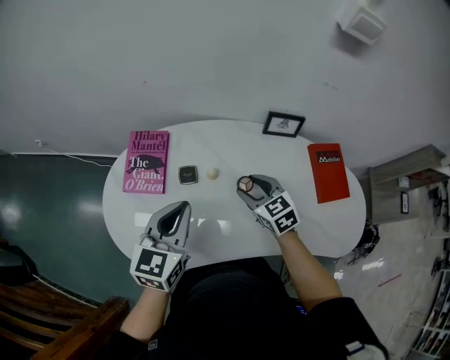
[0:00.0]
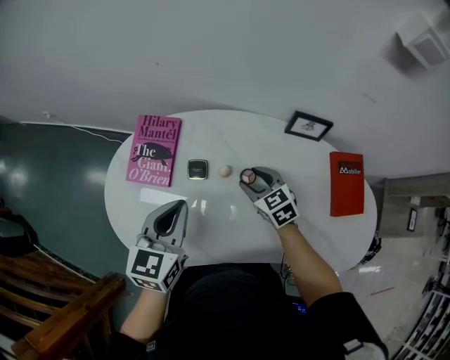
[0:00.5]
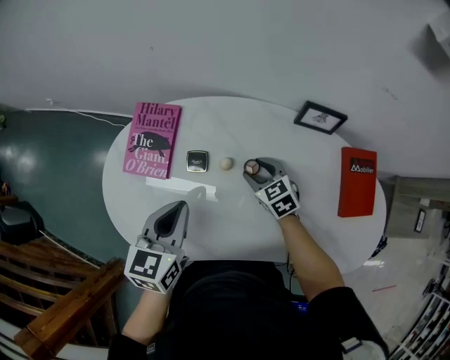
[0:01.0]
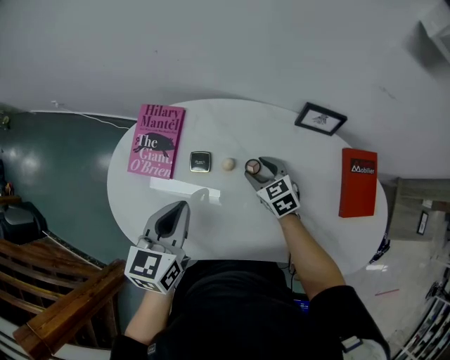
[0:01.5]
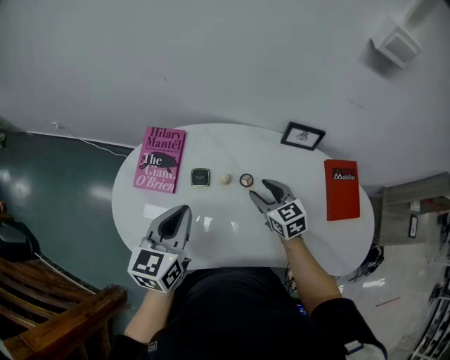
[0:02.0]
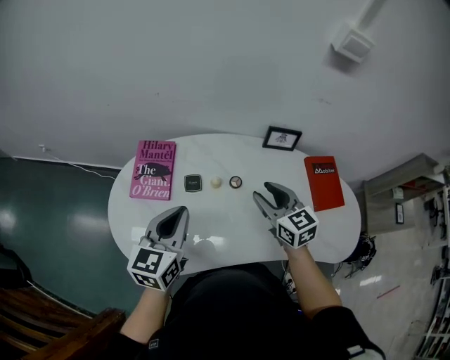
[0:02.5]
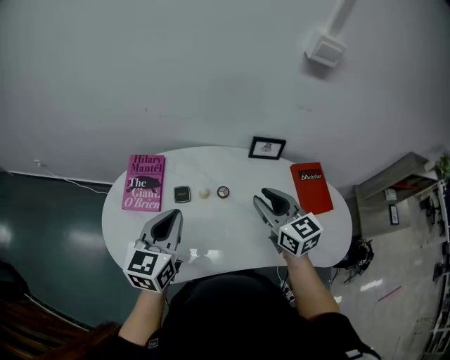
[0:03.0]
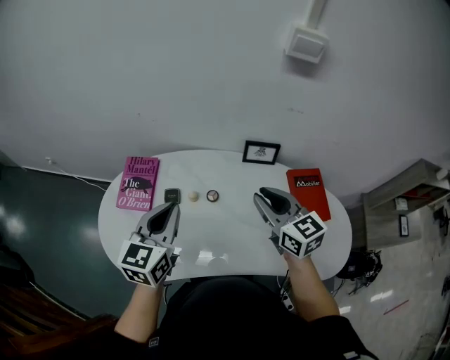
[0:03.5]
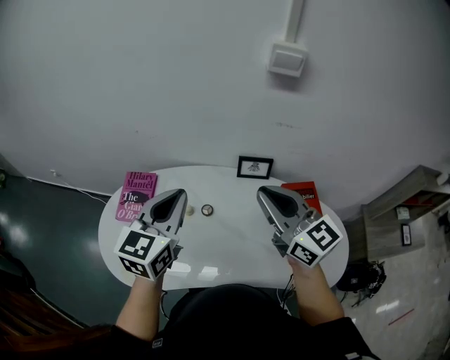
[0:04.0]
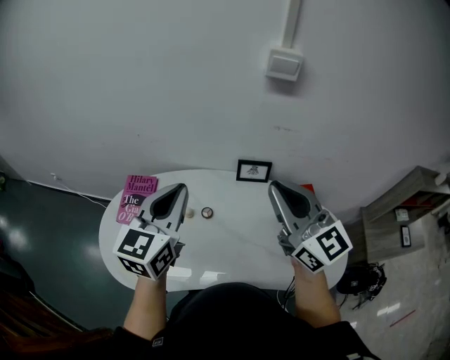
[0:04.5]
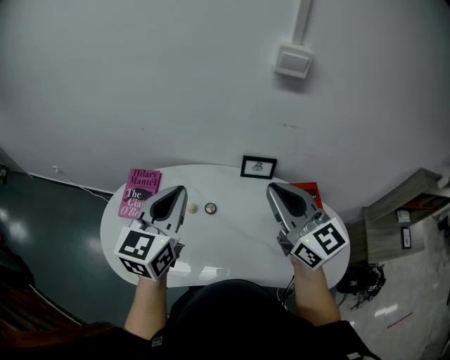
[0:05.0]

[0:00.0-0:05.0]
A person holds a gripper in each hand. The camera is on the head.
0:00.0 to 0:02.5: The right gripper is displaced upward by about 10 cm; the left gripper reaches about 5 cm downward, then returns.
0:02.5 to 0:05.0: The two grippers go about 20 cm upward and to the right. The right gripper swivels approximately 30 degrees, and closes its fingers.

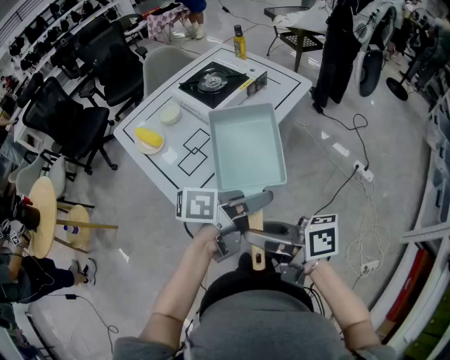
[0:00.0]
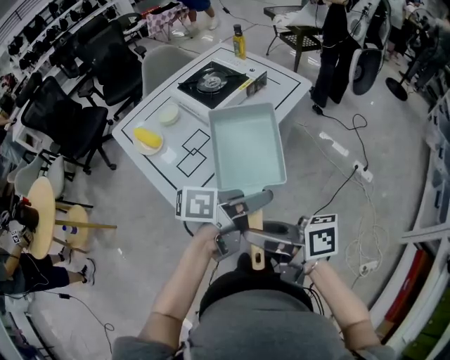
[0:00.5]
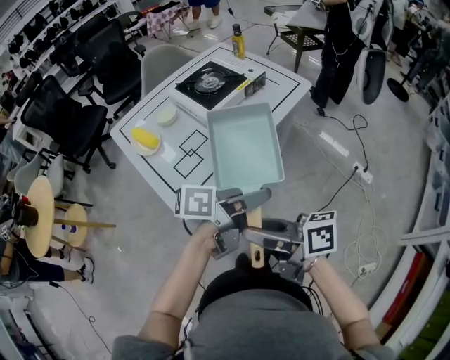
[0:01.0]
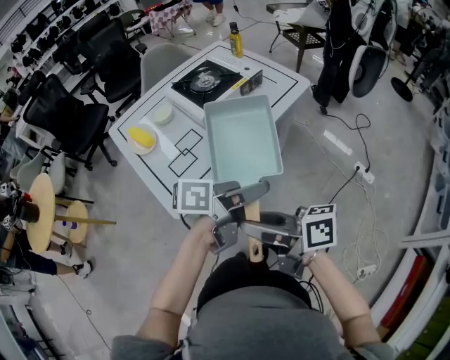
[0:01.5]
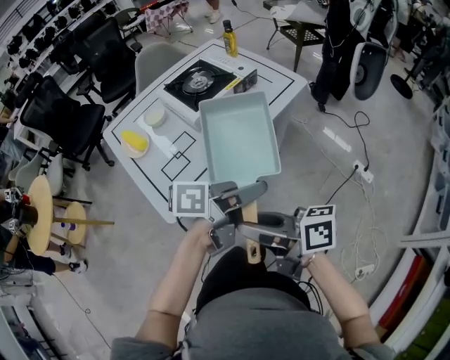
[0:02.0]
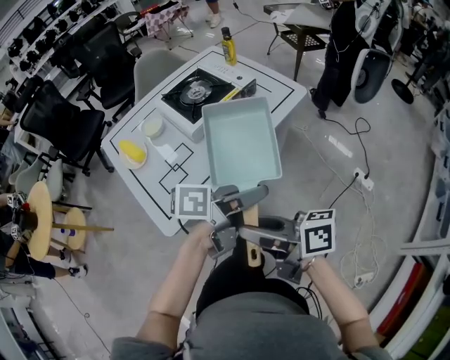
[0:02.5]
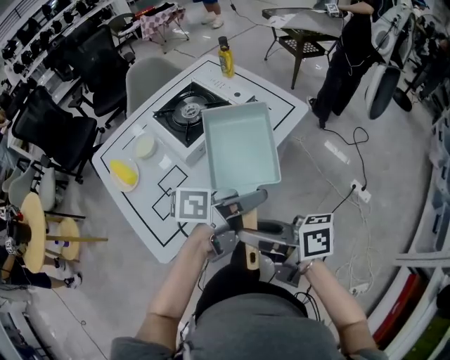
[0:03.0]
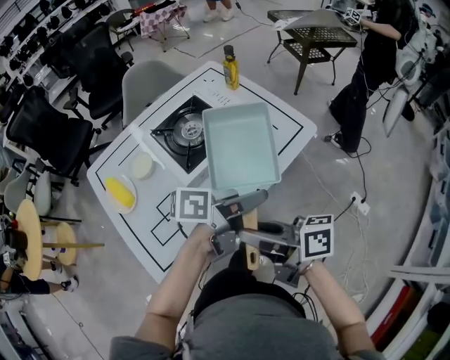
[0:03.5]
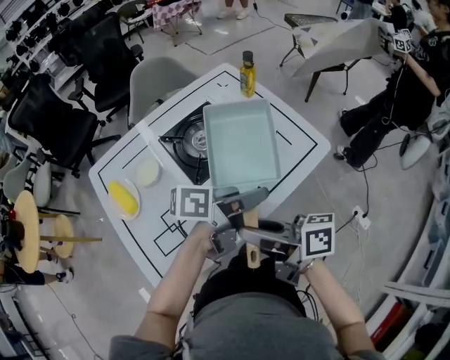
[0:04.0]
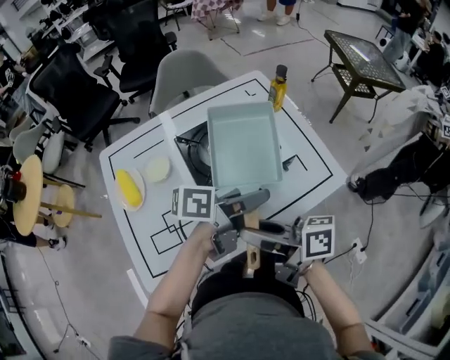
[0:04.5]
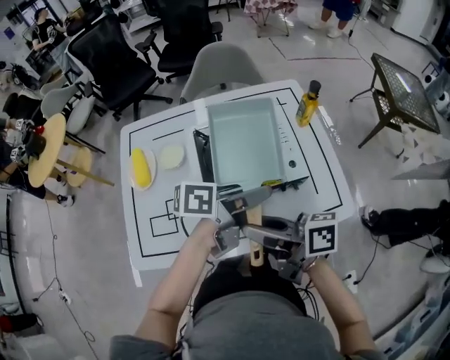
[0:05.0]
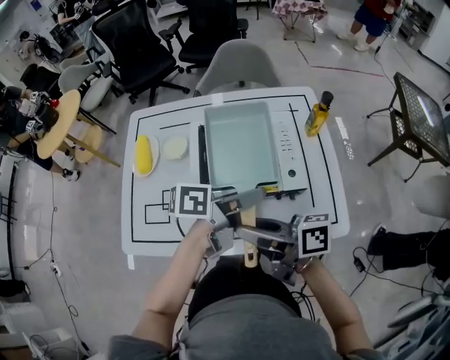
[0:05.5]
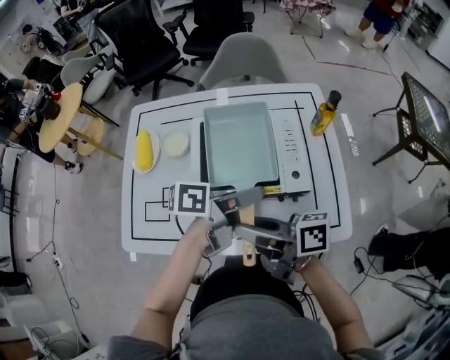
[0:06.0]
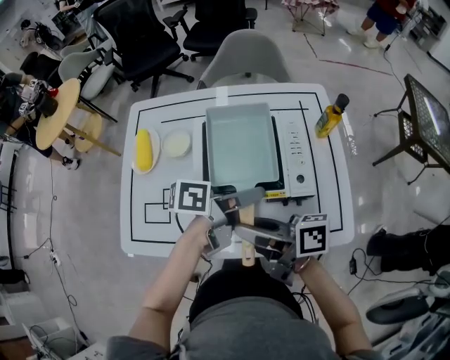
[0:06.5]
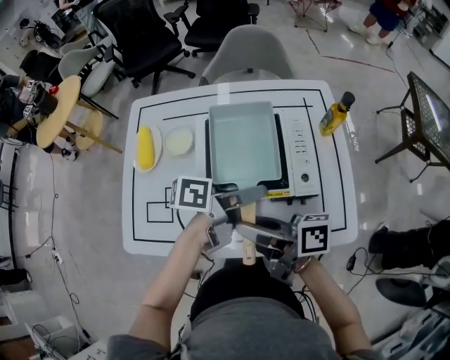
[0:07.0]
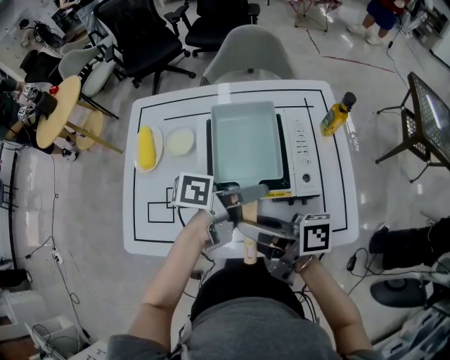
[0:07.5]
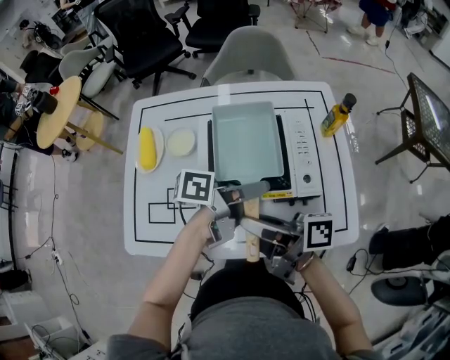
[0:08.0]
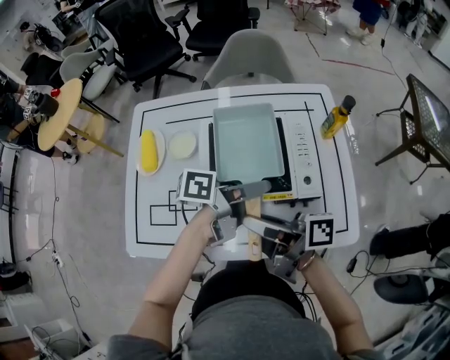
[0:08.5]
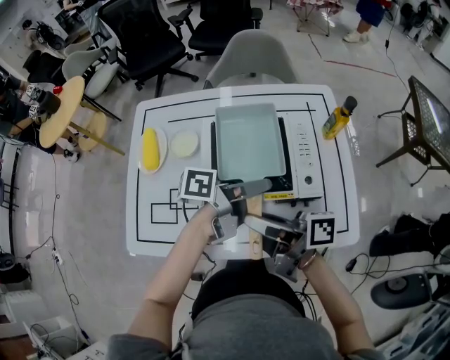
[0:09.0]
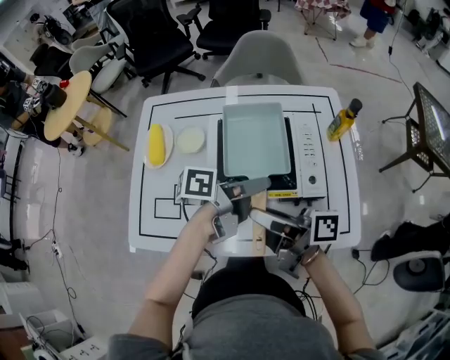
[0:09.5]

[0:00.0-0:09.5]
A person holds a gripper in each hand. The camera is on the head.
0:00.0 to 0:02.0: The right gripper moves about 5 cm. The left gripper moves about 5 cm.
0:02.0 to 0:04.0: The right gripper ends up some 25 cm from where it was; the left gripper moves roughly 25 cm.
0:04.0 to 0:05.5: The right gripper changes place by about 10 cm, and rotates about 40 degrees; the left gripper ends up approximately 10 cm from where it was, and turns by some 40 degrees.
0:05.5 to 0:07.5: The grippers make only small movements.
0:07.5 to 0:09.5: The grippers move only a little.

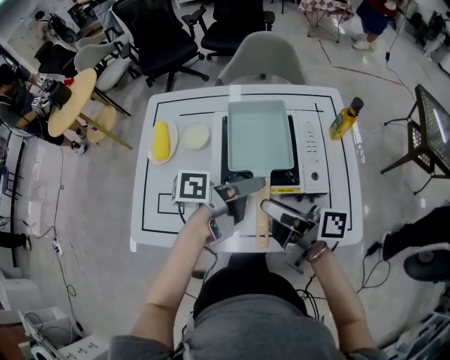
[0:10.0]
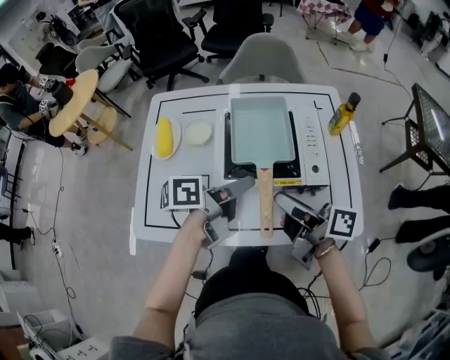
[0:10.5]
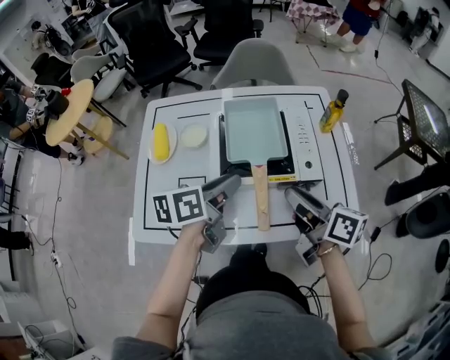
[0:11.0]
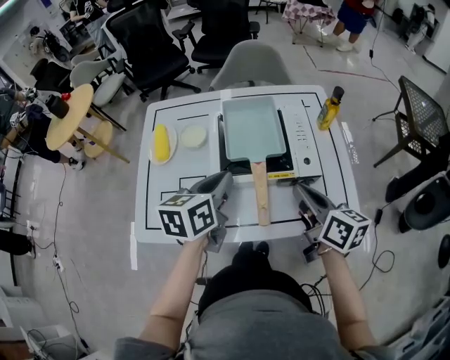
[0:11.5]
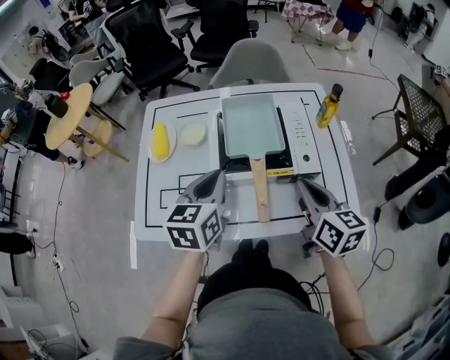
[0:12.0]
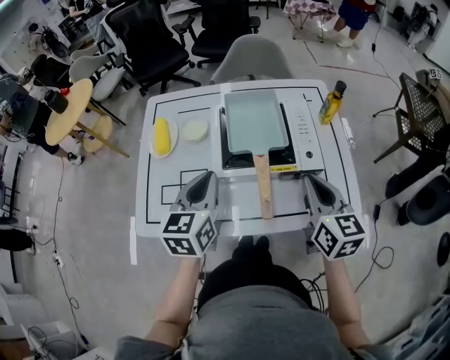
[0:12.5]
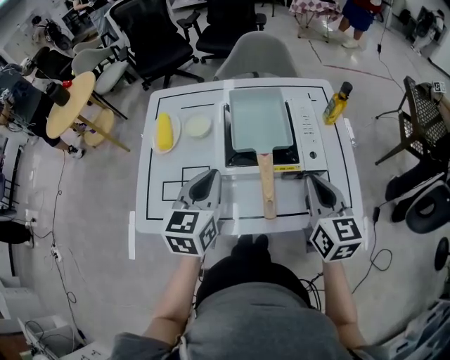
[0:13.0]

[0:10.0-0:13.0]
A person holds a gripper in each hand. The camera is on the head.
0:10.0 to 0:11.5: The left gripper heads to the left, covering approximately 5 cm, rolls clockwise, seen from behind, by some 40 degrees, and closes up. The right gripper travels to the right by roughly 10 cm, swivels some 50 degrees, and closes its fingers.
0:11.5 to 0:13.0: The left gripper turns by about 20 degrees, while the right gripper turns by approximately 30 degrees.

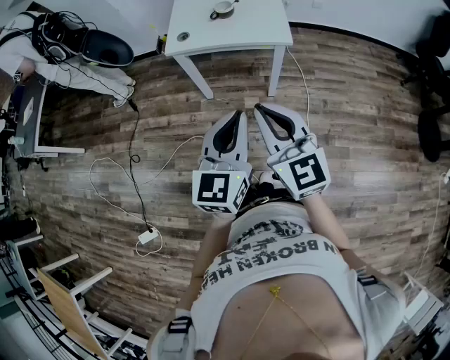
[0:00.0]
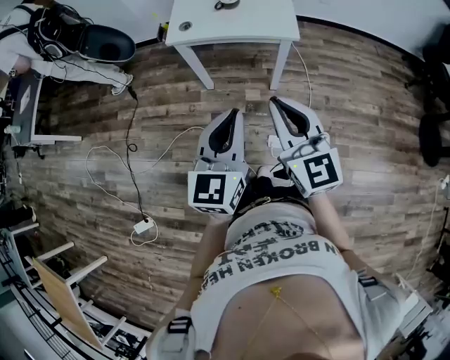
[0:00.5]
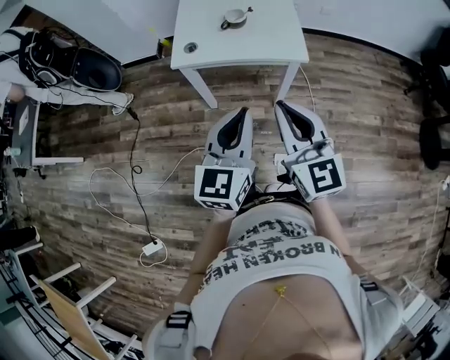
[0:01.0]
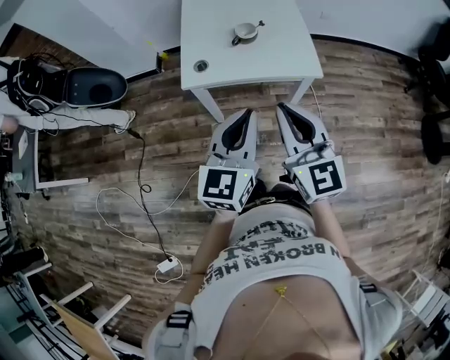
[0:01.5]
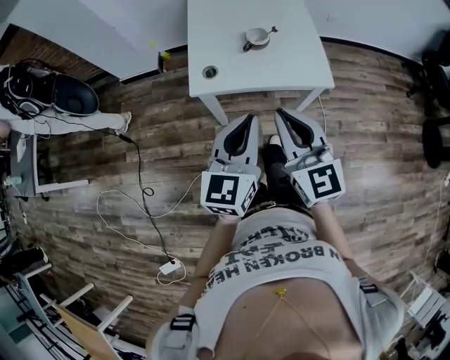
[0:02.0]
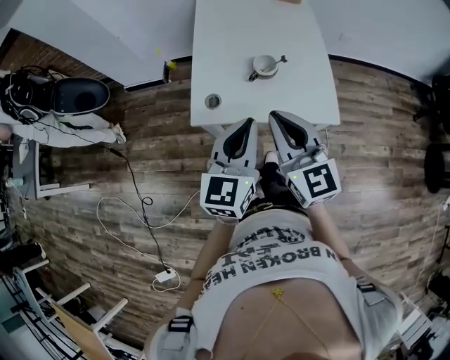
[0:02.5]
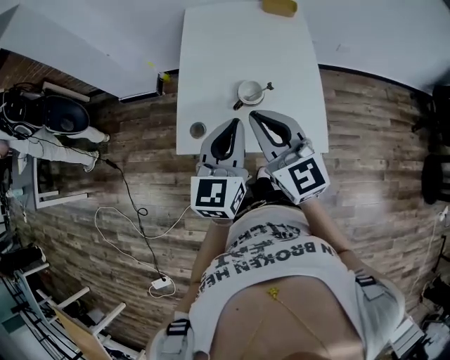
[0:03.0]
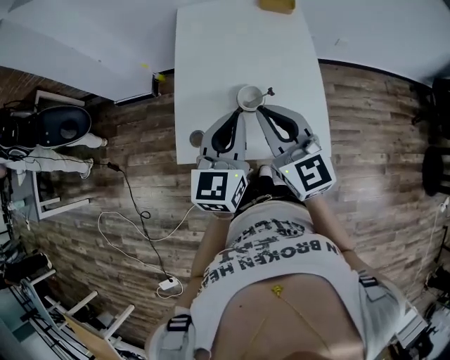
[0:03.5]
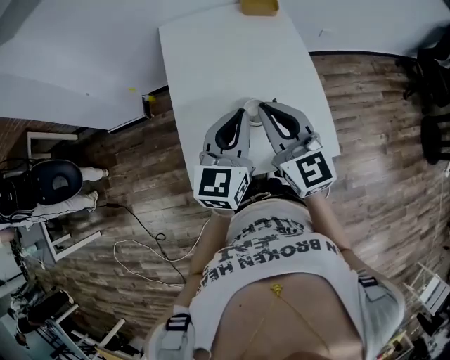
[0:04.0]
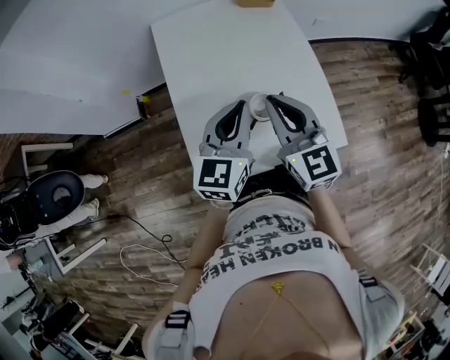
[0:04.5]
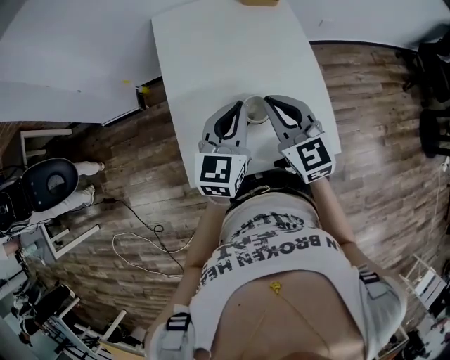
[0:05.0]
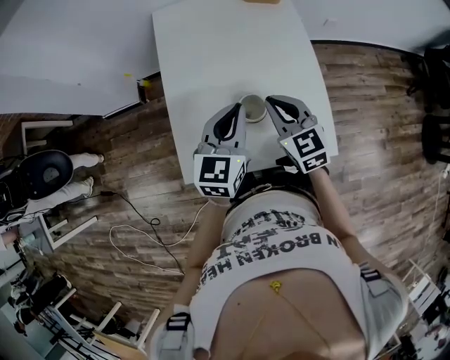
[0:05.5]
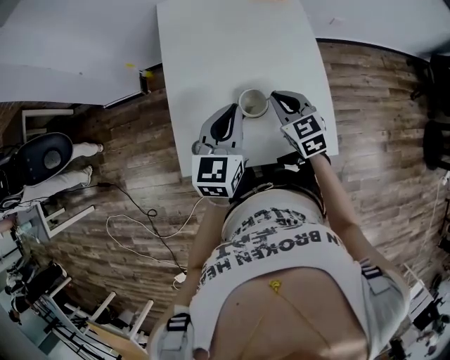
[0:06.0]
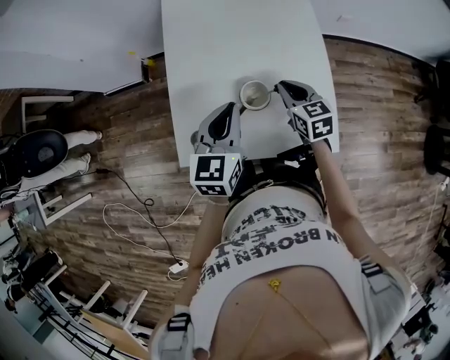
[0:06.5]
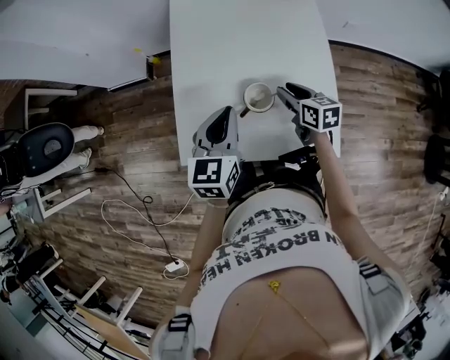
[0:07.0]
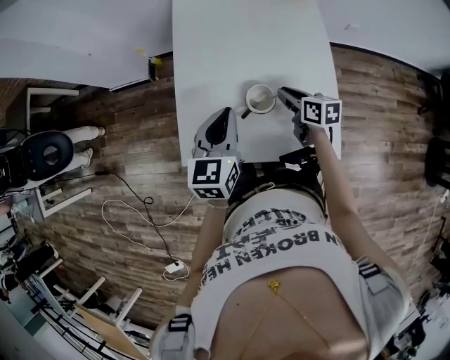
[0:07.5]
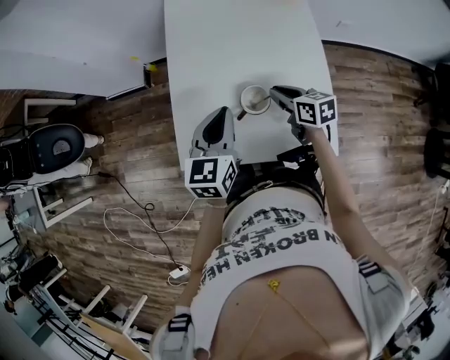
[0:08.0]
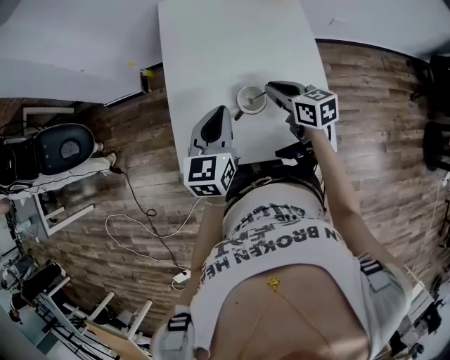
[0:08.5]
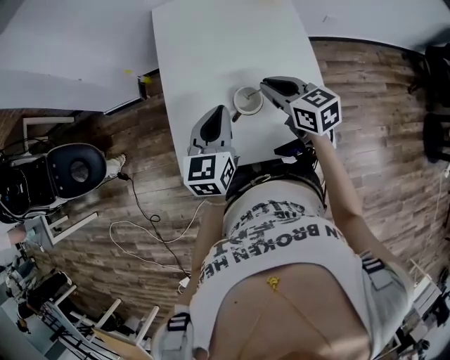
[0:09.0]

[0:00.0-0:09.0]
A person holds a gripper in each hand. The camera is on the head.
0:00.0 to 0:02.0: The grippers both shift forward and to the left by approximately 30 cm.
0:02.0 to 0:04.5: Both grippers are carried forward, some 40 cm.
0:04.5 to 0:07.0: The right gripper moves downward and to the right, about 25 cm, swivels roughly 40 degrees, and opens; the left gripper goes some 5 cm downward, and swivels some 20 degrees.
0:07.0 to 0:09.0: The right gripper shifts approximately 10 cm upward, and closes up.
